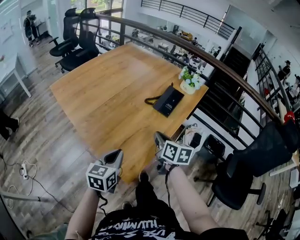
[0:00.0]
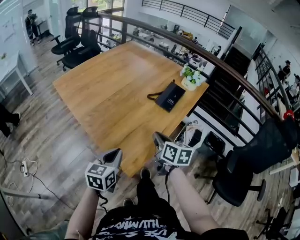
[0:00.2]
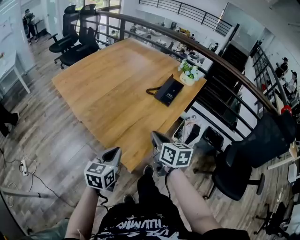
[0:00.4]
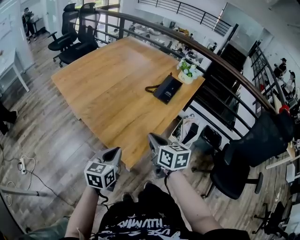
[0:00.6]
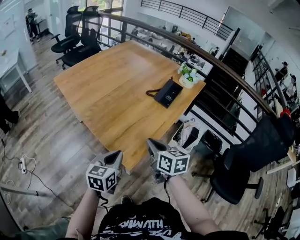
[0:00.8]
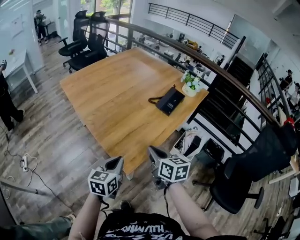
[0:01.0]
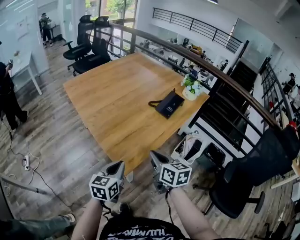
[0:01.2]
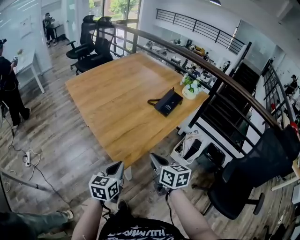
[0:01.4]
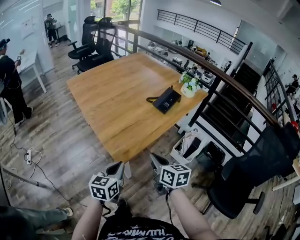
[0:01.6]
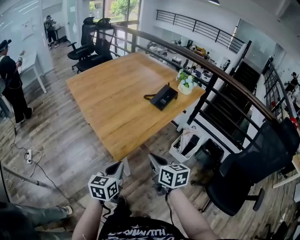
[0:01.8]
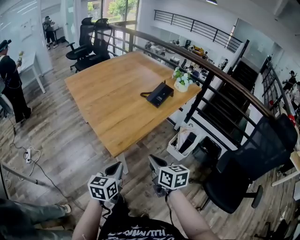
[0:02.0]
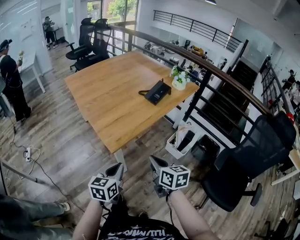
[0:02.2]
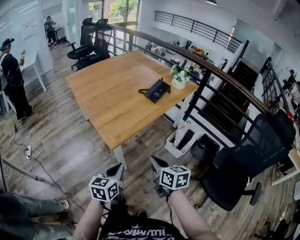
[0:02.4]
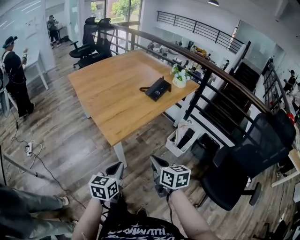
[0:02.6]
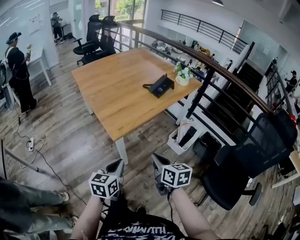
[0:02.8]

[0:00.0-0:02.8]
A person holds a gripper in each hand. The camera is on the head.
0:00.0 to 0:01.4: Both grippers move backward, about 15 cm.
0:01.4 to 0:02.8: The left gripper travels backward by approximately 15 cm. The right gripper is displaced backward and to the right by some 20 cm.

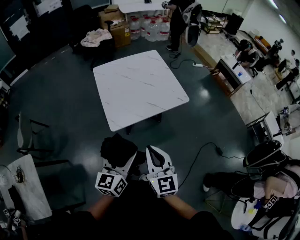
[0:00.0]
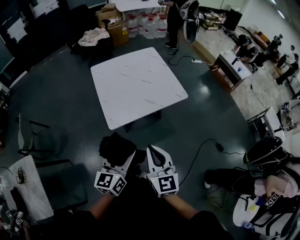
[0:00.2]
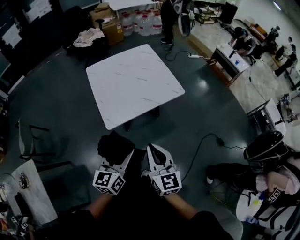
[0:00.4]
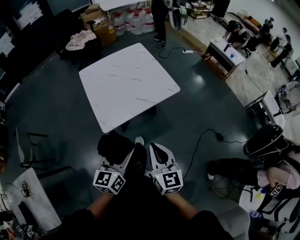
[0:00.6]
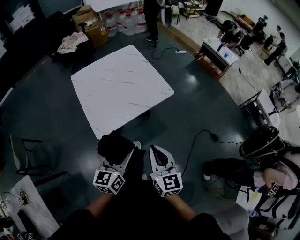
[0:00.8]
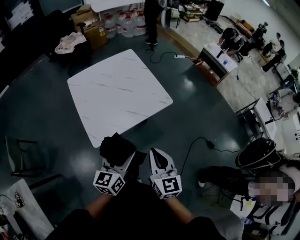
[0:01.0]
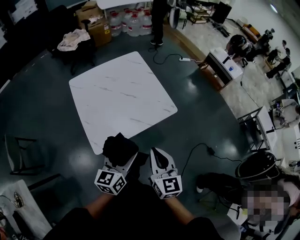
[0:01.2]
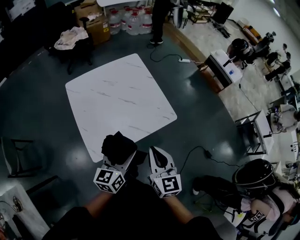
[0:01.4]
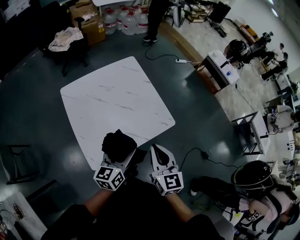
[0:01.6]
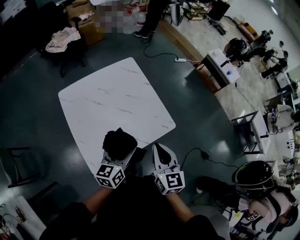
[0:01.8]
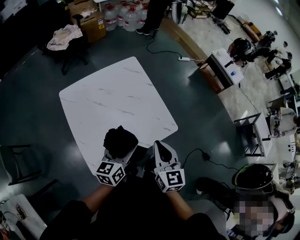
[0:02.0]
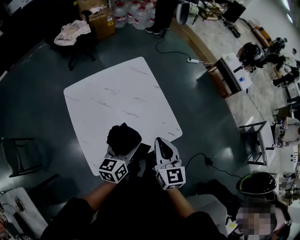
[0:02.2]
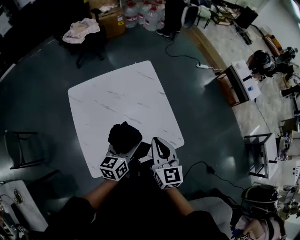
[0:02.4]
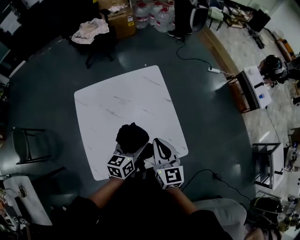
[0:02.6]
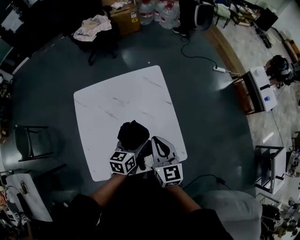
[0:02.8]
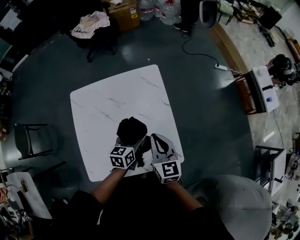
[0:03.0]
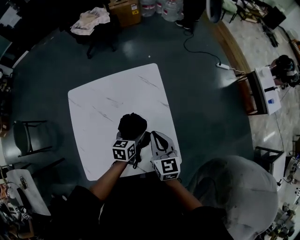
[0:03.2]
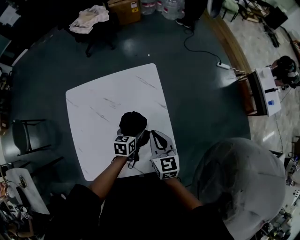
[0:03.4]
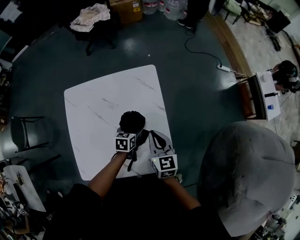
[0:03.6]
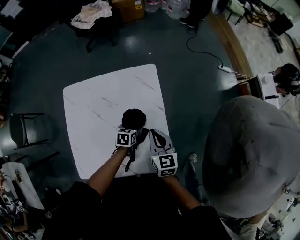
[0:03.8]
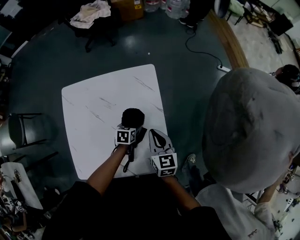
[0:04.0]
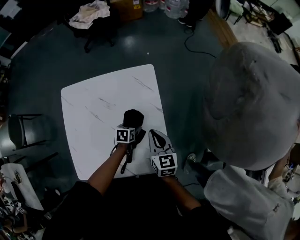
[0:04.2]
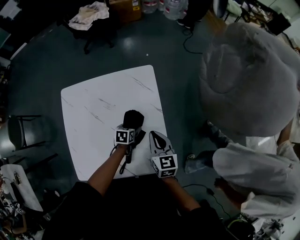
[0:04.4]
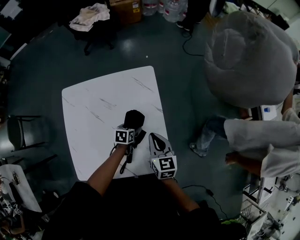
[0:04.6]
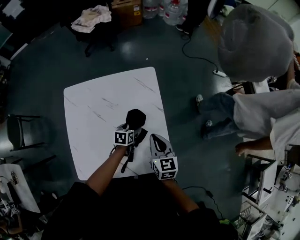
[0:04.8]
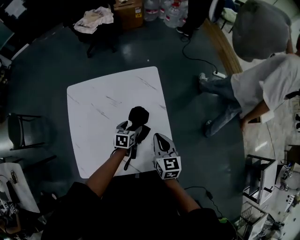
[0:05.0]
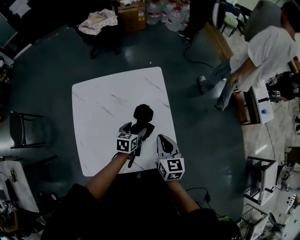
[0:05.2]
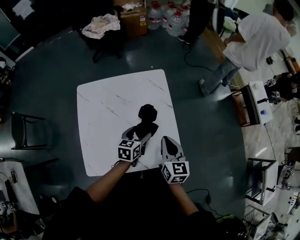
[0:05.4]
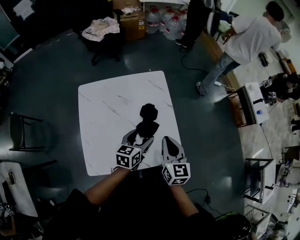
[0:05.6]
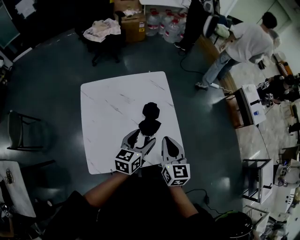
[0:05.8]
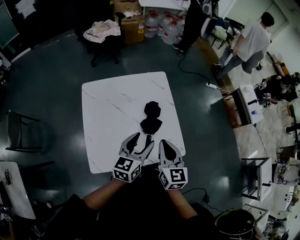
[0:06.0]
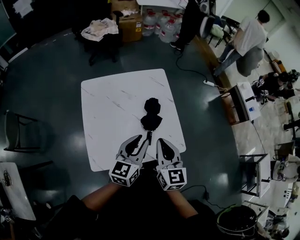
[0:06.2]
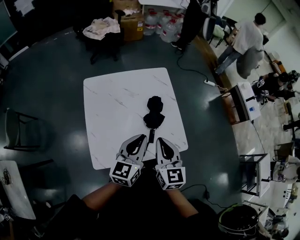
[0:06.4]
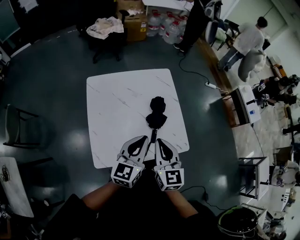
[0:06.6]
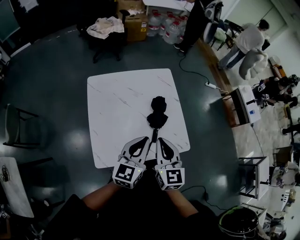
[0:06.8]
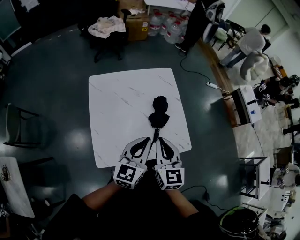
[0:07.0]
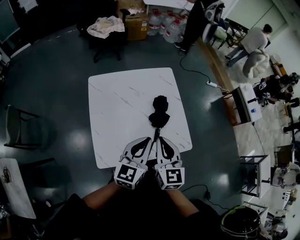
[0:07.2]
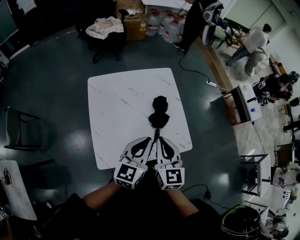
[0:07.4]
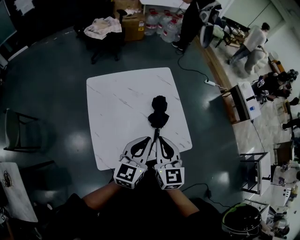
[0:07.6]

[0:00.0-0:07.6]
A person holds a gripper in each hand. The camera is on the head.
0:00.0 to 0:01.6: Both grippers travel together forward, roughly 35 cm.
0:01.6 to 0:03.0: The left gripper travels forward and downward by roughly 35 cm, and swivels some 20 degrees; the right gripper heads forward, covering about 30 cm, and changes its angle by some 20 degrees.
0:03.0 to 0:04.6: The right gripper goes about 10 cm downward and forward. Meanwhile the left gripper moves downward, about 15 cm, and swivels some 20 degrees.
0:04.6 to 0:06.0: The right gripper heads backward, upward and to the left, covering some 25 cm. The left gripper moves upward and backward, about 40 cm, and angles its fingers upward, by roughly 40 degrees.
0:06.0 to 0:07.6: The left gripper moves to the left and backward, roughly 10 cm, and closes up. The right gripper travels to the left by roughly 10 cm.

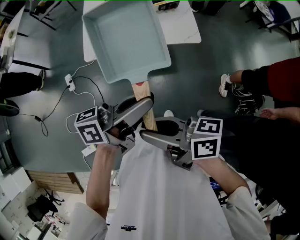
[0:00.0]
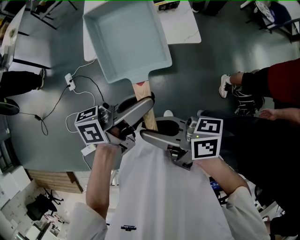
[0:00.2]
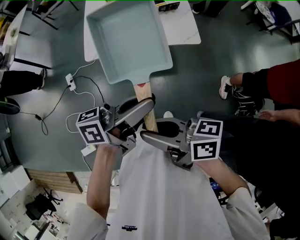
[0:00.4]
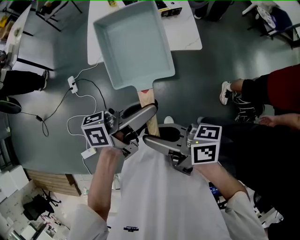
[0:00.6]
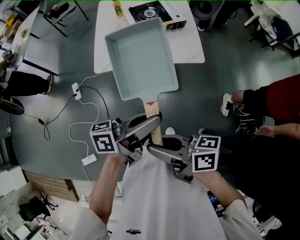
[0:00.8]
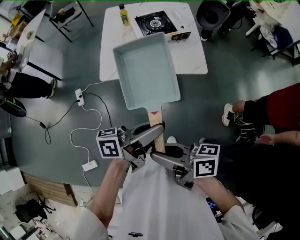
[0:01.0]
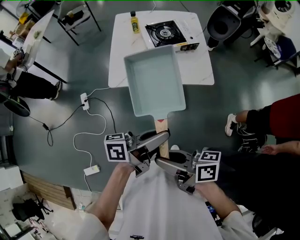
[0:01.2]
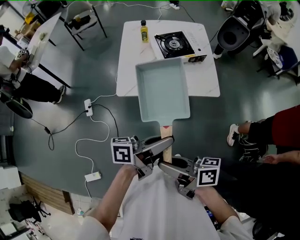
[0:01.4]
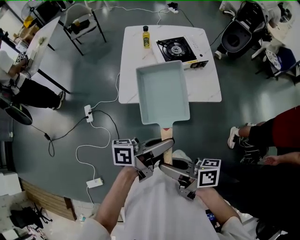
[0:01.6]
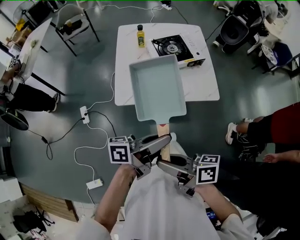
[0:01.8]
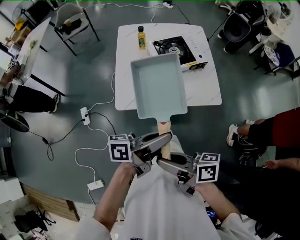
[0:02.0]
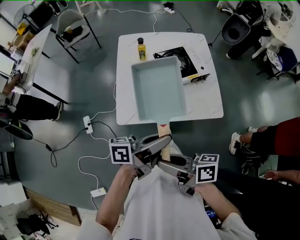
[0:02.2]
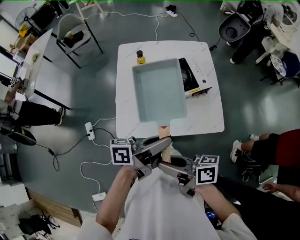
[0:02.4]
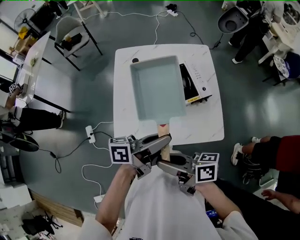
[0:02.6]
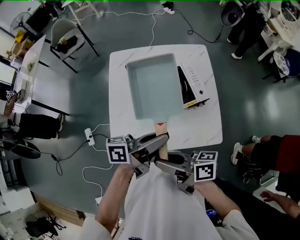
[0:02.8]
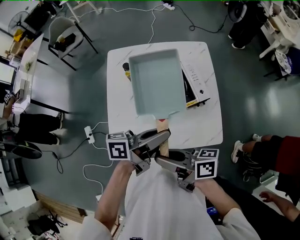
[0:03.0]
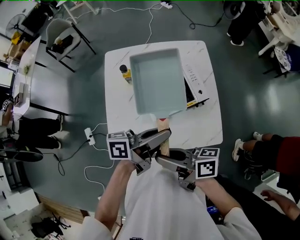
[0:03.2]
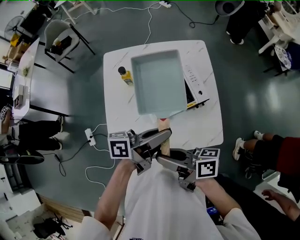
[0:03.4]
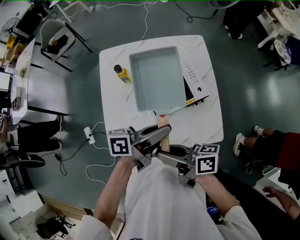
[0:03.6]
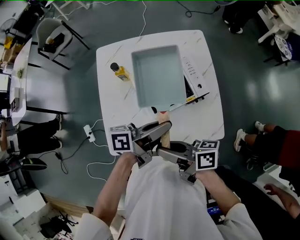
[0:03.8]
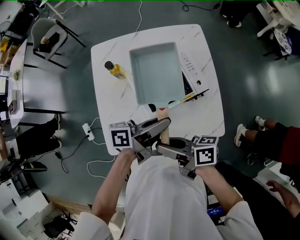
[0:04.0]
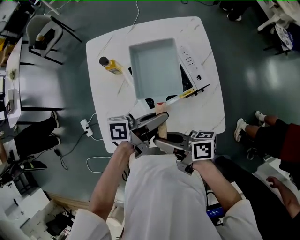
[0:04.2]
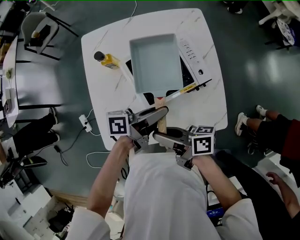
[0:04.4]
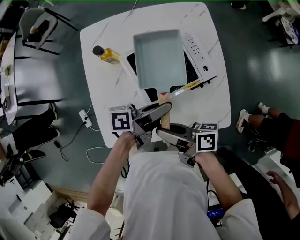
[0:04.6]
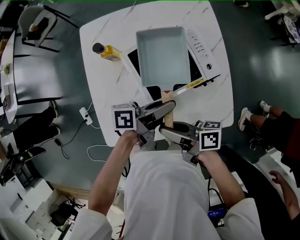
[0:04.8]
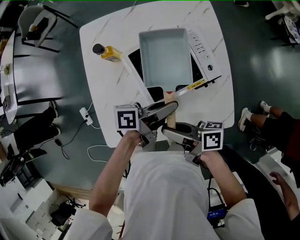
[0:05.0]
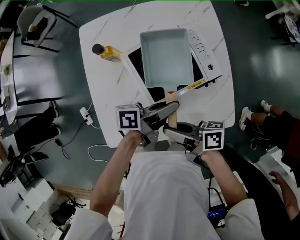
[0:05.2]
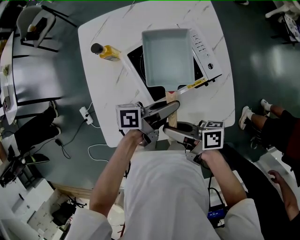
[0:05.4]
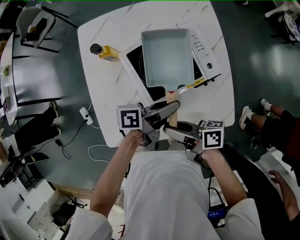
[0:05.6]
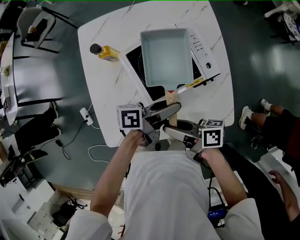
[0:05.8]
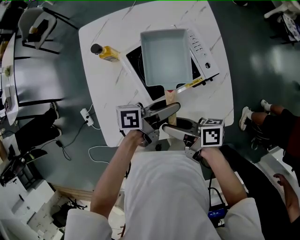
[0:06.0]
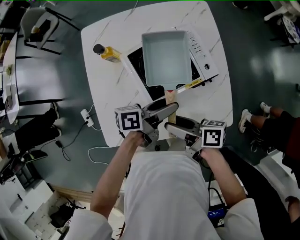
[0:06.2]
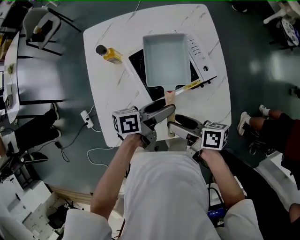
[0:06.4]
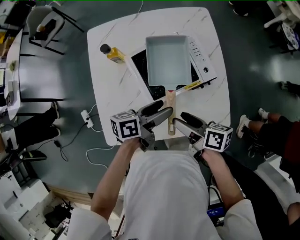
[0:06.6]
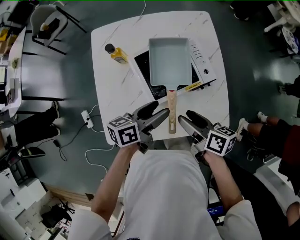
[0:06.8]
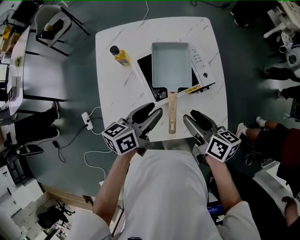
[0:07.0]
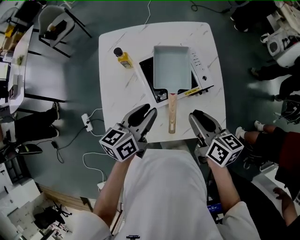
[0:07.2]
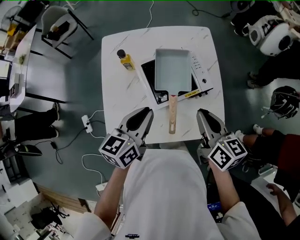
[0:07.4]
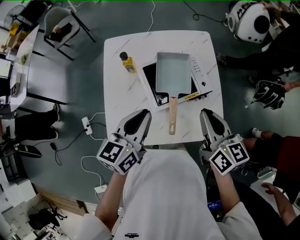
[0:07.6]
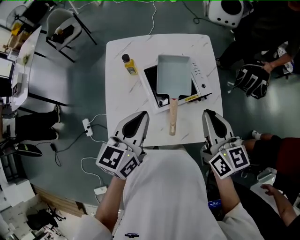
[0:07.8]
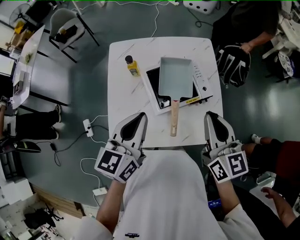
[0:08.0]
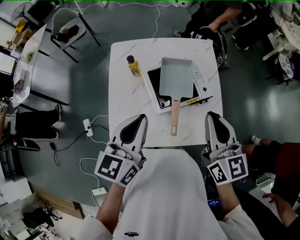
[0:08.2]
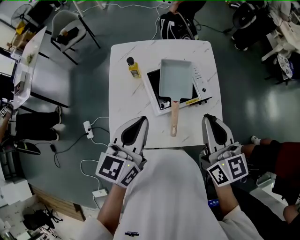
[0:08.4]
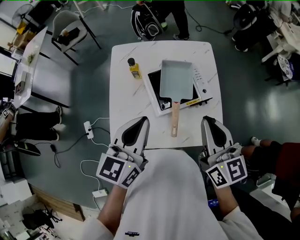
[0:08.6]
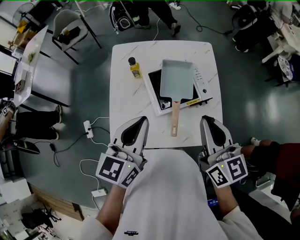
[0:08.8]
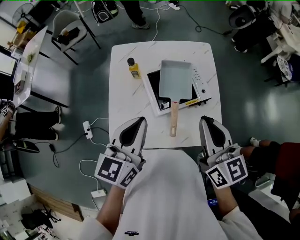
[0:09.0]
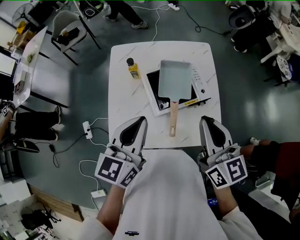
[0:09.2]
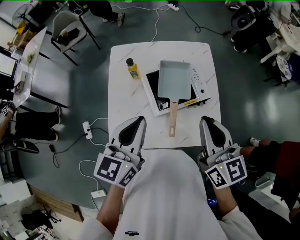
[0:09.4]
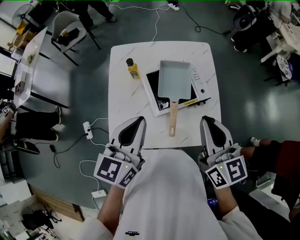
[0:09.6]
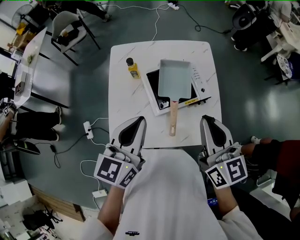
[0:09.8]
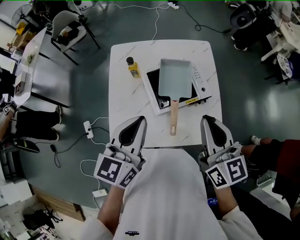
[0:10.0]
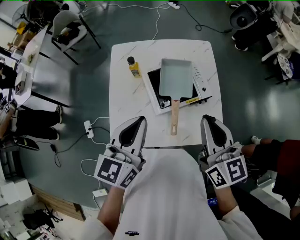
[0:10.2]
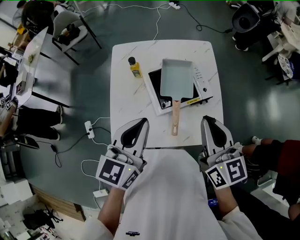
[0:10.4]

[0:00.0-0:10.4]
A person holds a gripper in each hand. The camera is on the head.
0:00.0 to 0:01.4: The right gripper ends up about 5 cm from where it was, while the left gripper shifts by about 5 cm.
0:01.4 to 0:03.0: The left gripper shifts by roughly 40 cm. Meanwhile the right gripper shifts by roughly 40 cm.
0:03.0 to 0:04.4: Both grippers move downward, roughly 15 cm.
0:04.4 to 0:06.0: The right gripper shifts approximately 5 cm downward, and opens. The left gripper moves some 5 cm.
0:06.0 to 0:07.4: Both grippers travel together upward, roughly 15 cm. The left gripper turns by some 60 degrees, and closes. The right gripper changes its angle by roughly 50 degrees, and closes up.
0:07.4 to 0:09.0: The two grippers go about 10 cm upward. The right gripper changes its angle by some 20 degrees.
0:09.0 to 0:10.4: Neither gripper changes place.

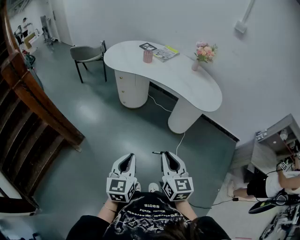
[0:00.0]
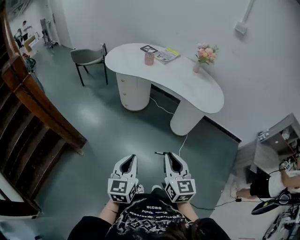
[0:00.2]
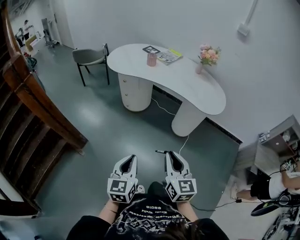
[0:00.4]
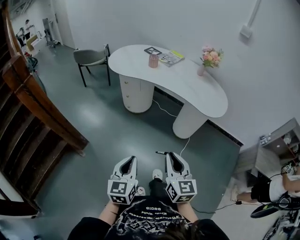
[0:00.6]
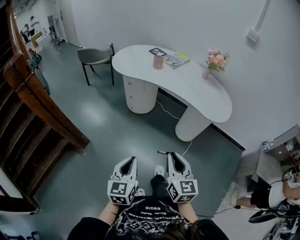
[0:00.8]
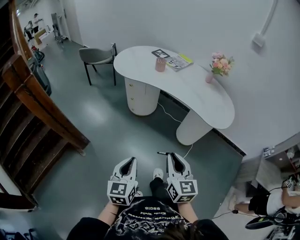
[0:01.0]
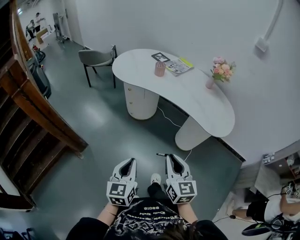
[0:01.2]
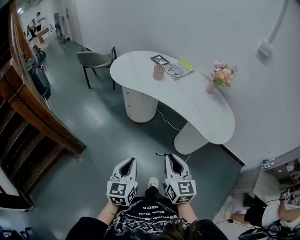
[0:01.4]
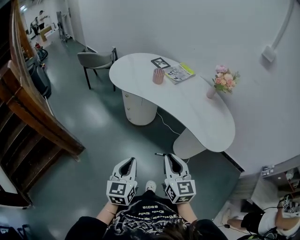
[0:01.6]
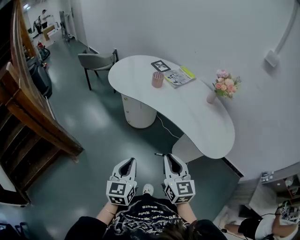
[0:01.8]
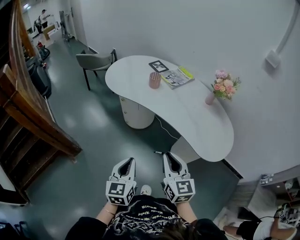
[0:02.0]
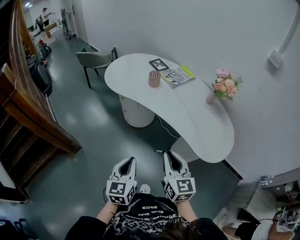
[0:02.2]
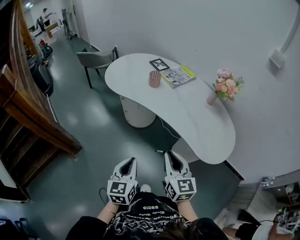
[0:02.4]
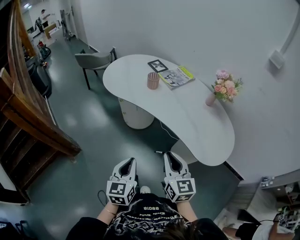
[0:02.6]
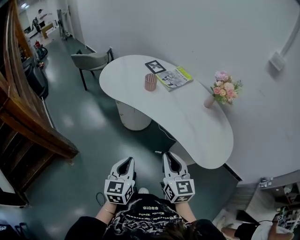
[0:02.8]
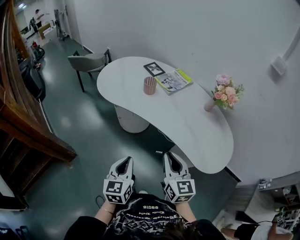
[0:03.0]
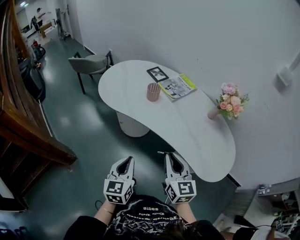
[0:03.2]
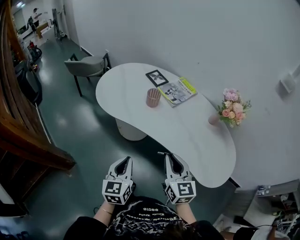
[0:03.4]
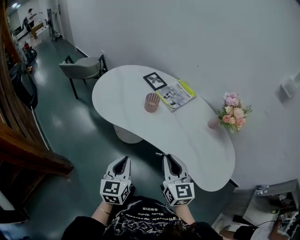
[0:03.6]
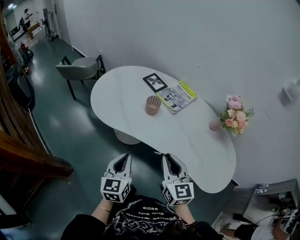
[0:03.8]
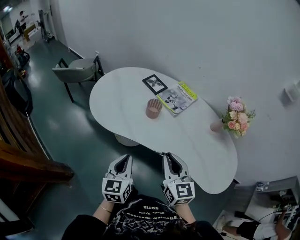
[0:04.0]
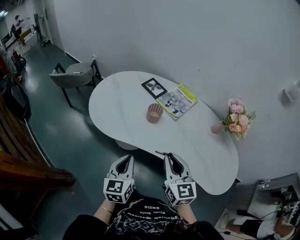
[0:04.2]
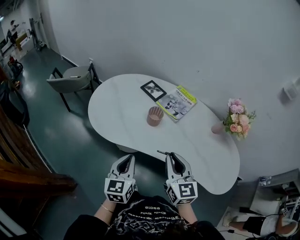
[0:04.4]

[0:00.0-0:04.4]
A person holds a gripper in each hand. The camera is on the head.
0:00.0 to 0:01.4: Both grippers move forward, about 20 cm.
0:01.4 to 0:03.0: Both grippers travel together forward and to the right, roughly 20 cm.
0:03.0 to 0:04.4: Both grippers move forward and to the left, some 30 cm.
